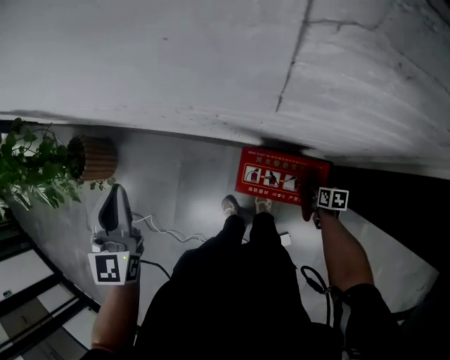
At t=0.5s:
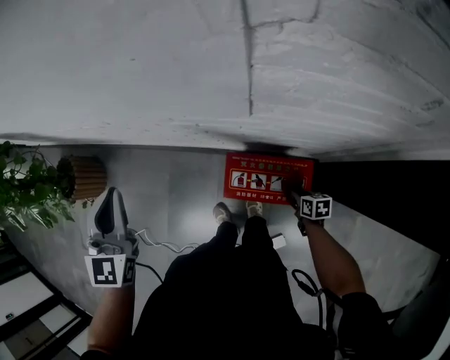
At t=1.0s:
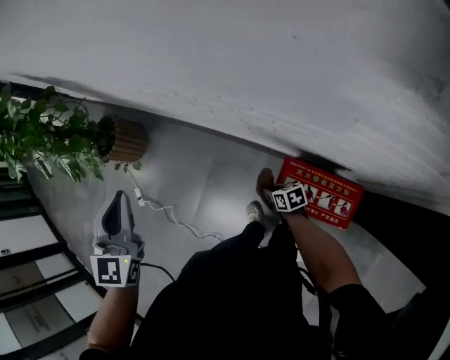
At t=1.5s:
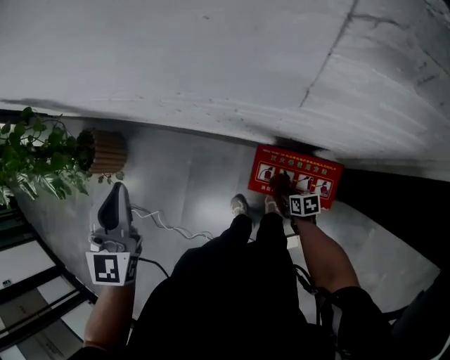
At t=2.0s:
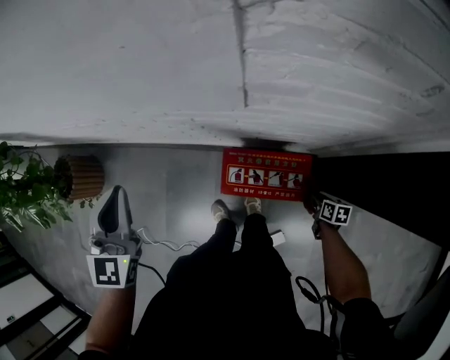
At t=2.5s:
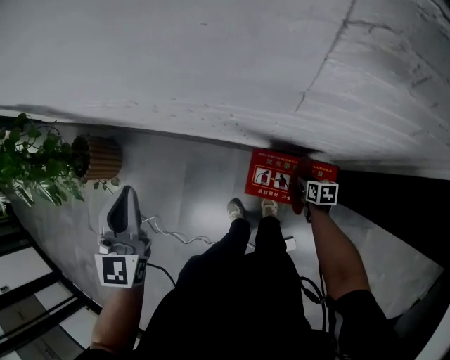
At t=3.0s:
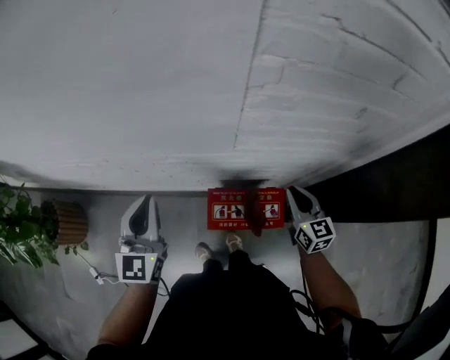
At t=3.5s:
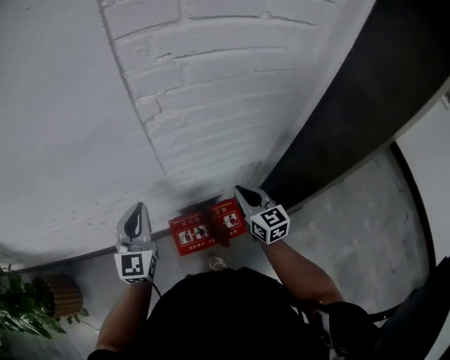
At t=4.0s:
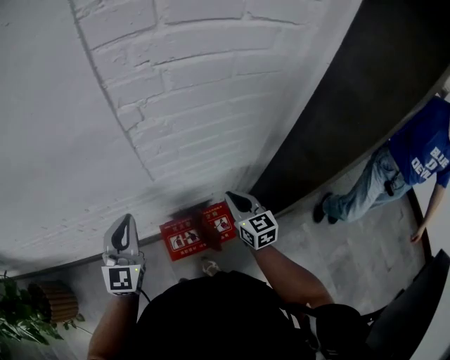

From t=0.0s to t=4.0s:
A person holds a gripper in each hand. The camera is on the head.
From t=2.0s to t=4.0s: The right gripper moves upward, some 35 cm, and tilts its fingers approximately 40 degrees upward; the left gripper changes place by roughly 15 cm, and rotates some 30 degrees.

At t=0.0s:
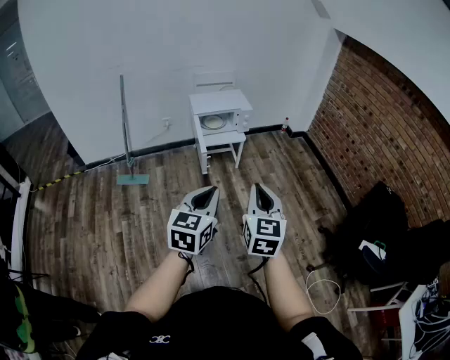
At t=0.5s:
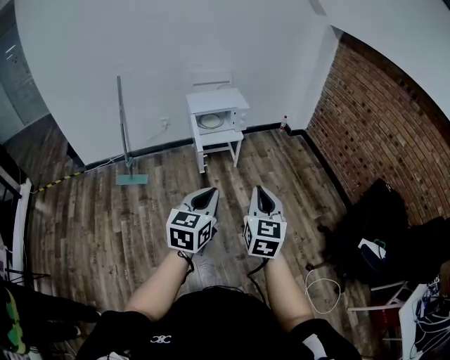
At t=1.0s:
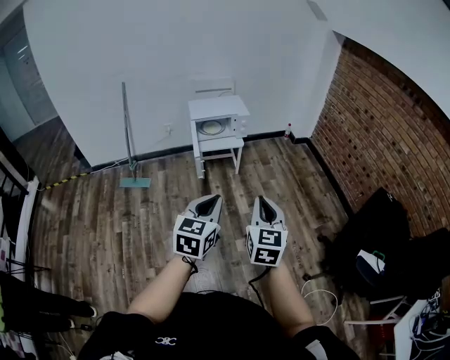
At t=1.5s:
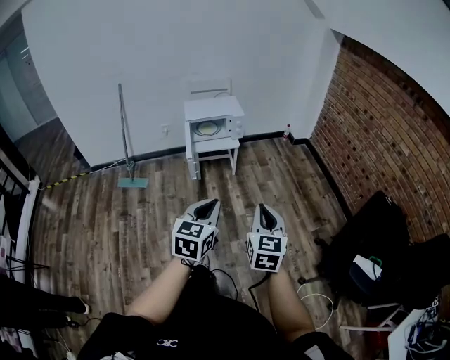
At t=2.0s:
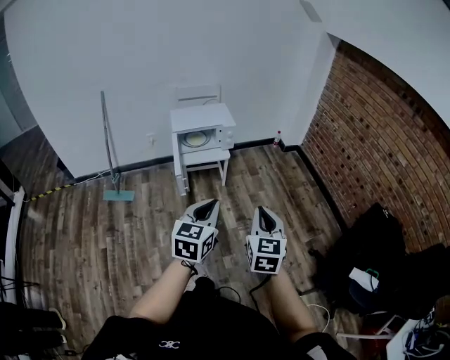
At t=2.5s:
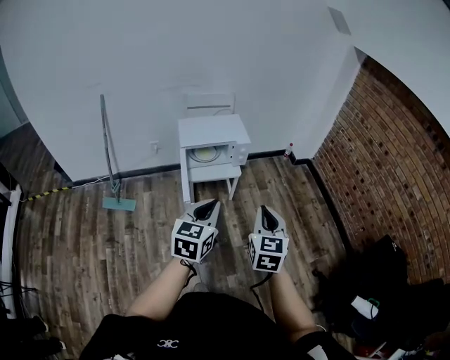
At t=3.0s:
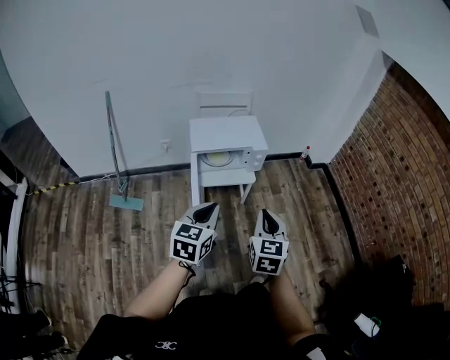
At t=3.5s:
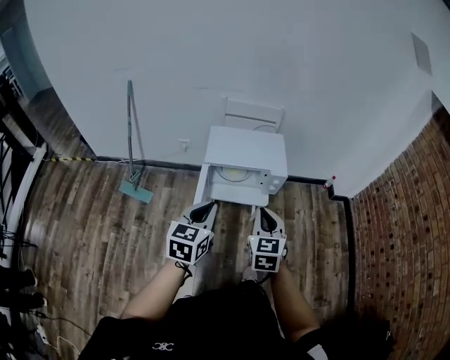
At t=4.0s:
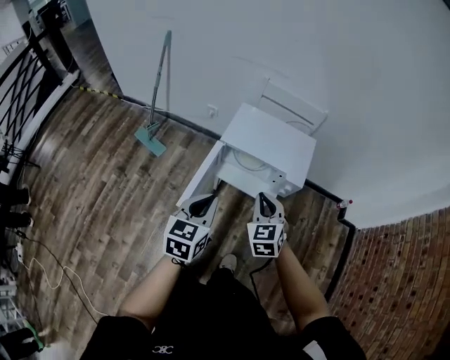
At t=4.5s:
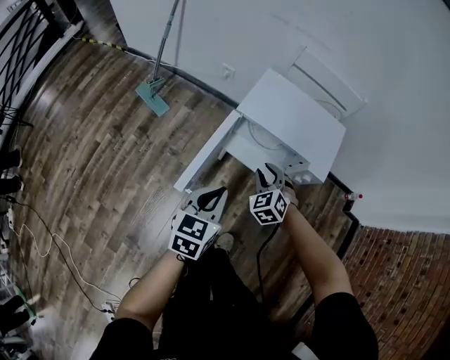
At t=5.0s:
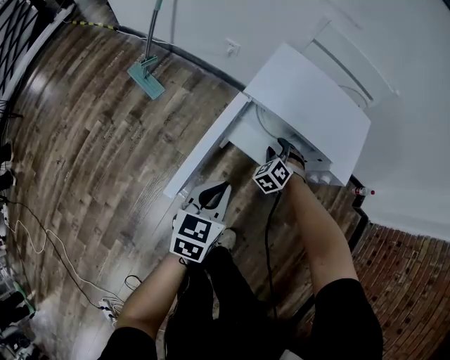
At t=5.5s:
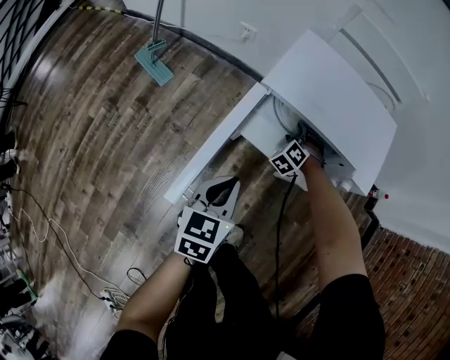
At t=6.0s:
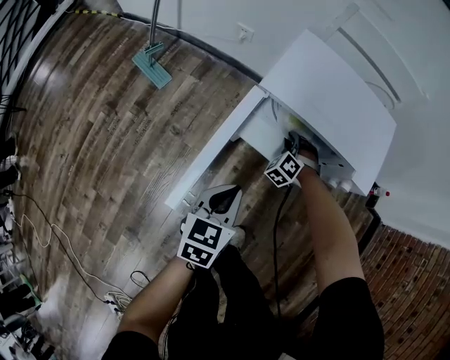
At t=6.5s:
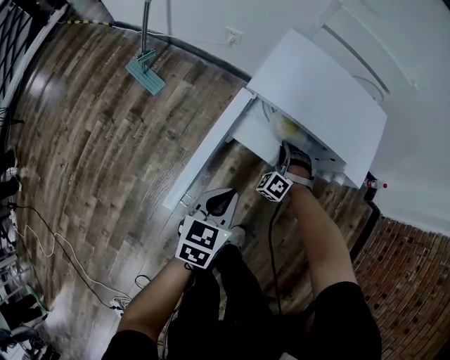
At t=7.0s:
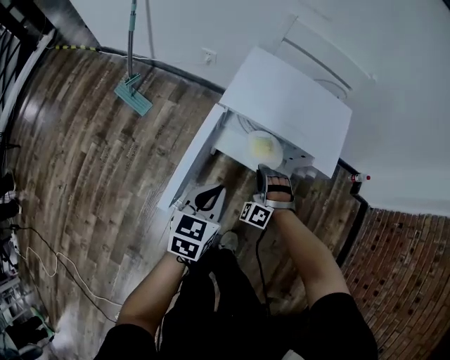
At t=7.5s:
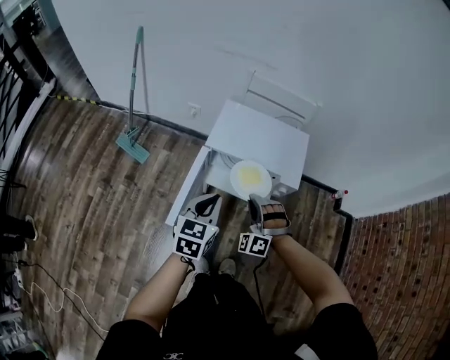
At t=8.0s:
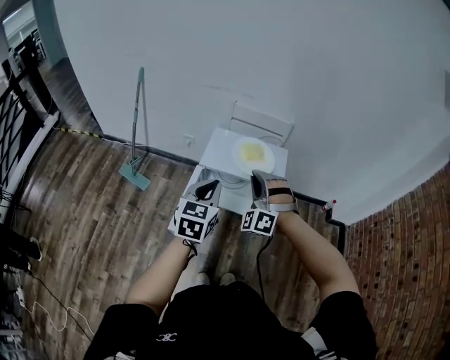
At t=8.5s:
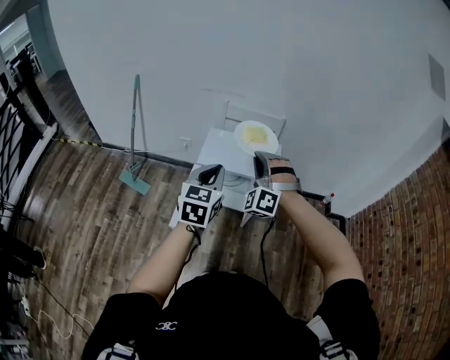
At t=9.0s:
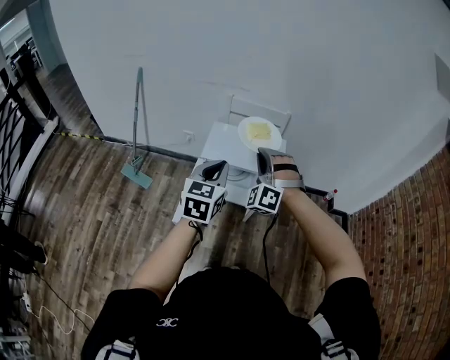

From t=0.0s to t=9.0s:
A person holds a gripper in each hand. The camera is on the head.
From t=0.0s to t=2.0s: The left gripper shifts some 20 cm forward and to the right. Meanwhile the right gripper is displaced to the right and forward by roughly 20 cm.
From t=2.0s to t=4.5s: The two grippers travel together, roughly 60 cm. The left gripper changes its angle by roughly 40 degrees. The right gripper changes its angle by about 80 degrees, and opens up.
From t=4.5s to t=7.0s: The left gripper moves downward and forward, approximately 10 cm, while the right gripper is displaced downward by some 10 cm, swivels about 40 degrees, and opens, then closes again.
From t=7.0s to t=9.0s: Both grippers move upward, roughly 40 cm. The left gripper swivels roughly 20 degrees; the right gripper turns by about 20 degrees.

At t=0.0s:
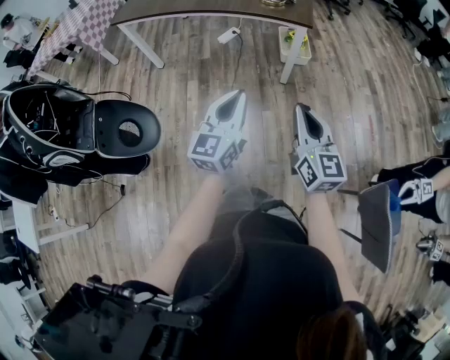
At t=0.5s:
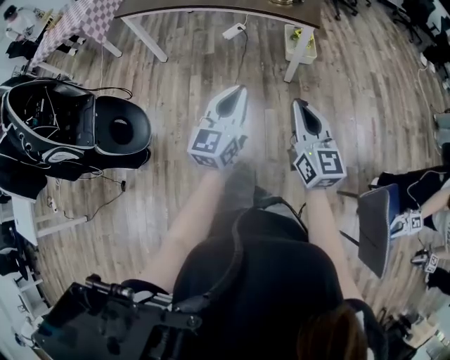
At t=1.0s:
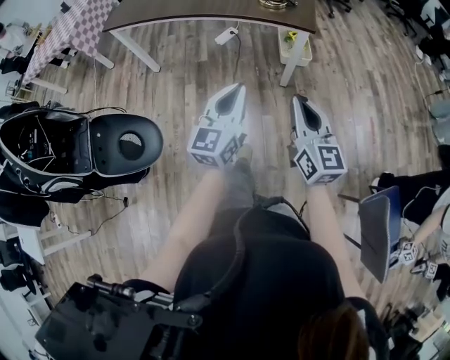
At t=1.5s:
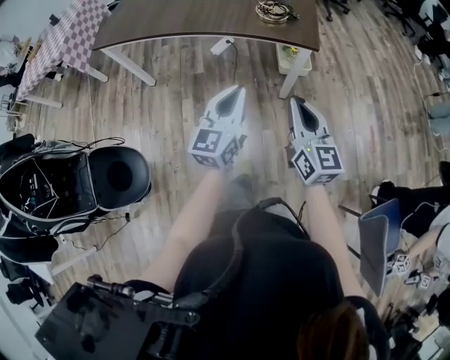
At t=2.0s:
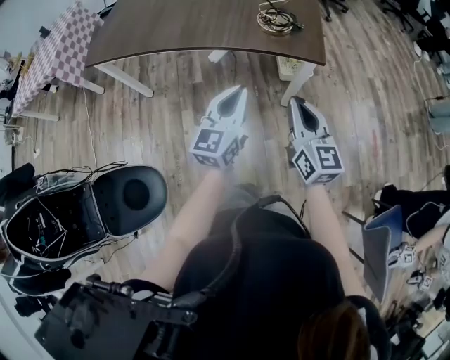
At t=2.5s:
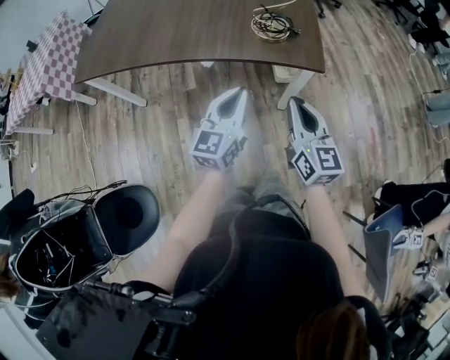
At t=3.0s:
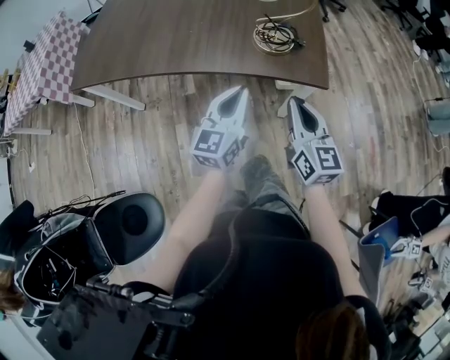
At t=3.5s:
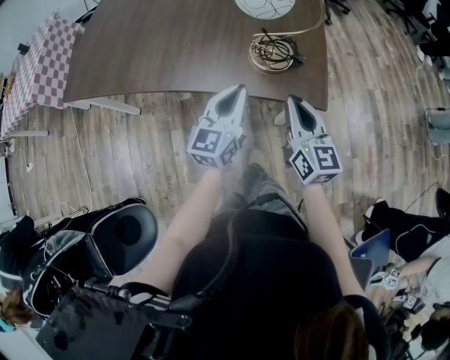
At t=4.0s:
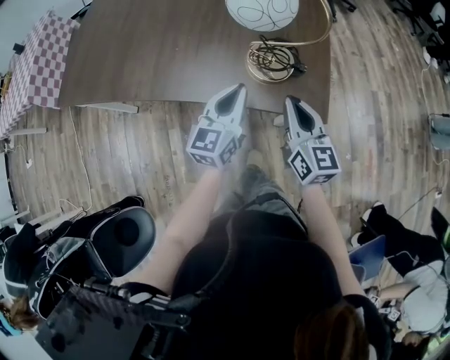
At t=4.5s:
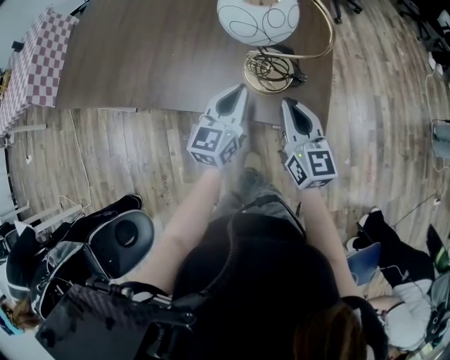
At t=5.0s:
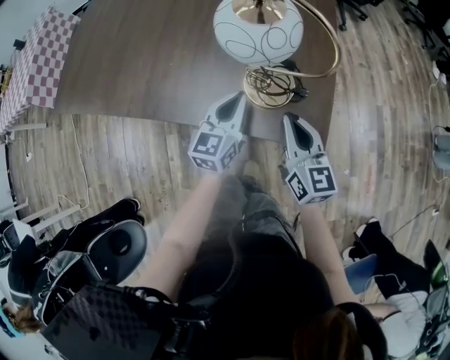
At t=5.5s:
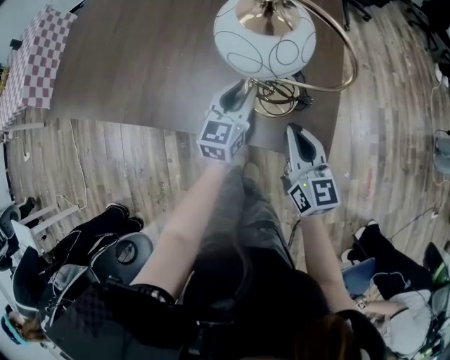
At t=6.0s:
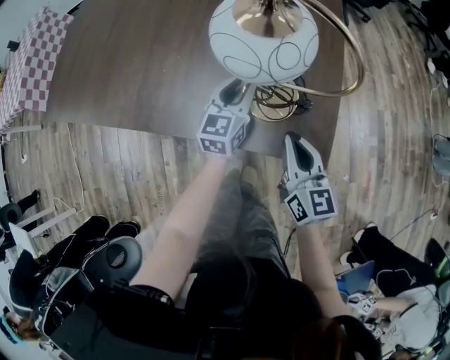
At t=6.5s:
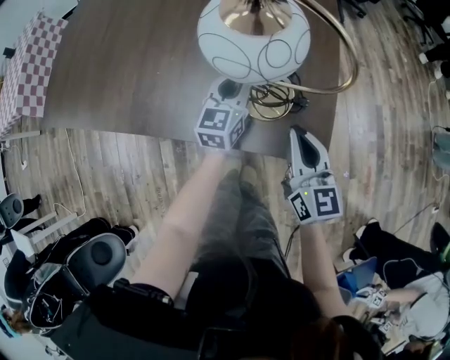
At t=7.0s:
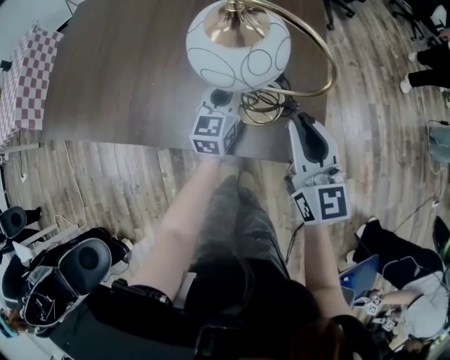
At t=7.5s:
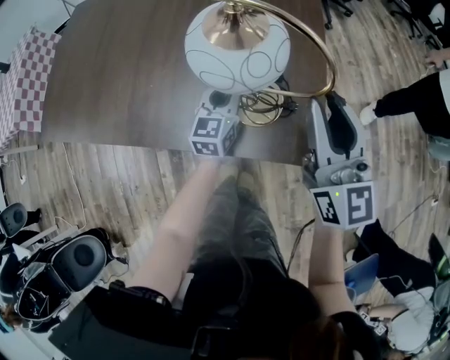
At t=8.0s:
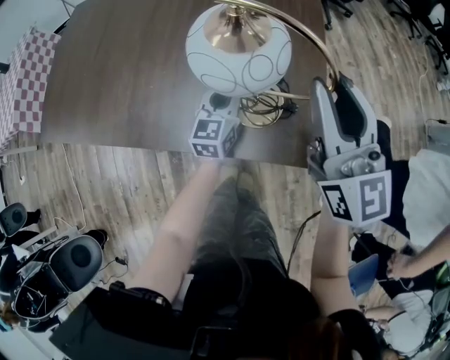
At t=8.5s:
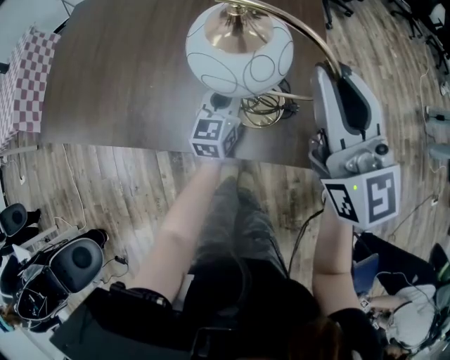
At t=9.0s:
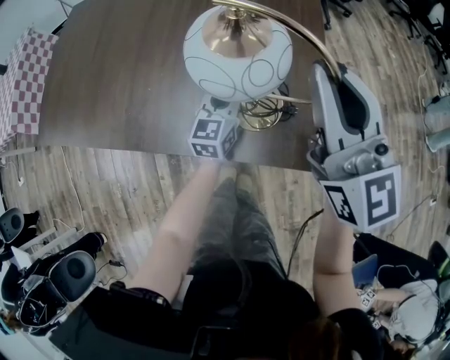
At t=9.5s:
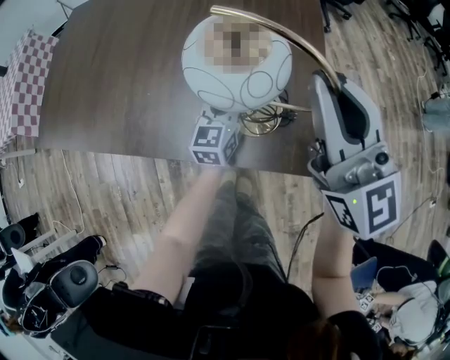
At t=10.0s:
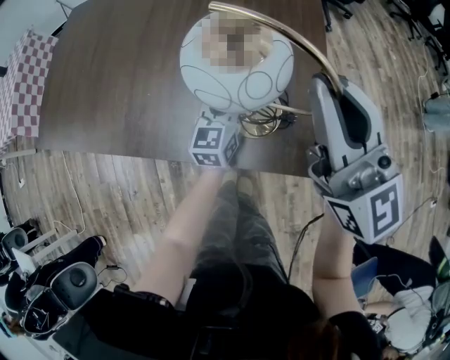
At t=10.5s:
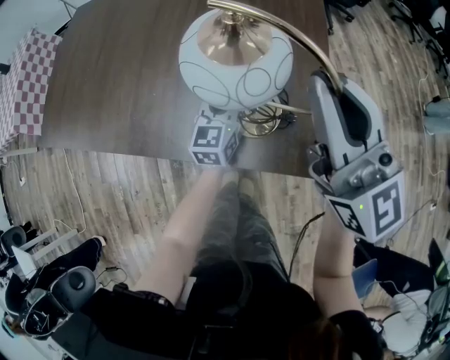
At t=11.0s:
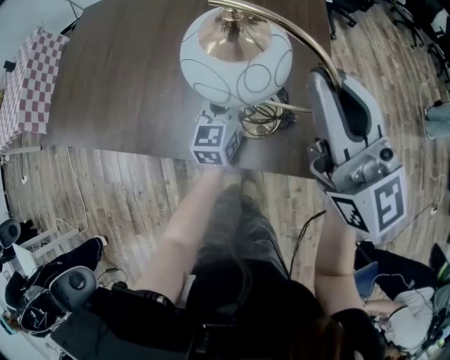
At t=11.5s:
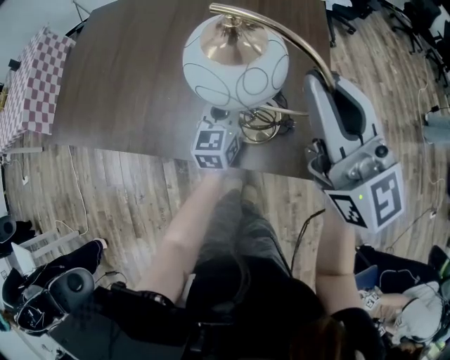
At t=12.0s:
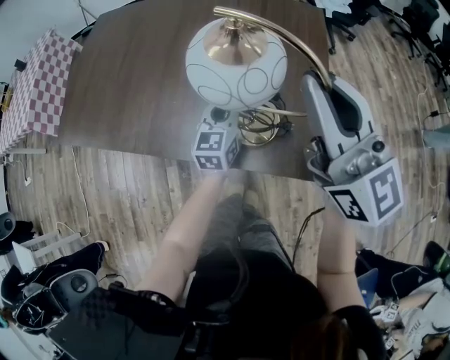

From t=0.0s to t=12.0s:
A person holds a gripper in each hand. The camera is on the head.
From t=0.0s to t=2.0s: The two grippers go approximately 25 cm forward.
From t=2.0s to t=4.0s: Both grippers travel together forward, some 25 cm.
From t=4.0s to t=6.0s: The left gripper heads forward and downward, covering some 15 cm, and opens its fingers, while the right gripper ends up approximately 5 cm from where it was.
From t=6.0s to t=8.0s: The right gripper moves upward, approximately 20 cm, rotates about 20 degrees, and opens up.
From t=8.0s to t=10.0s: The right gripper closes.
From t=10.0s to t=12.0s: The left gripper travels upward and to the left by approximately 5 cm. Meanwhile the right gripper goes approximately 5 cm upward.

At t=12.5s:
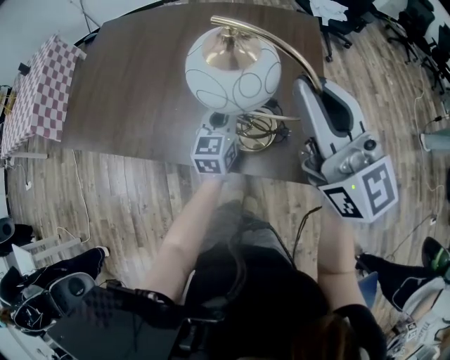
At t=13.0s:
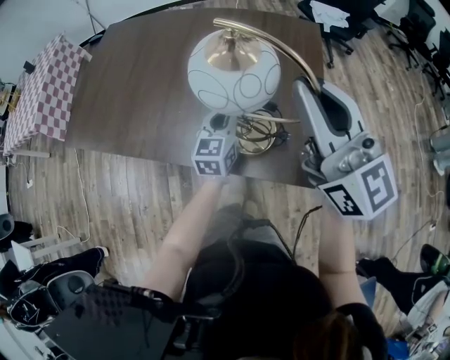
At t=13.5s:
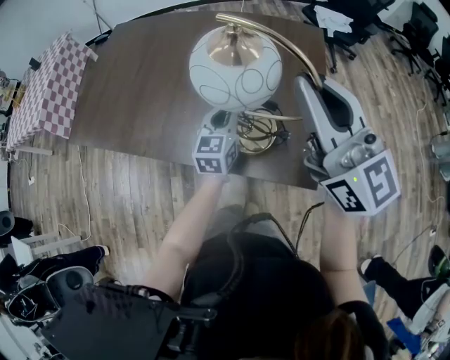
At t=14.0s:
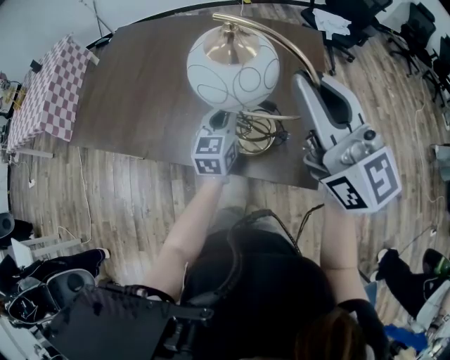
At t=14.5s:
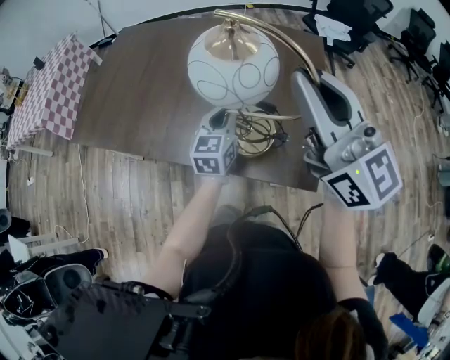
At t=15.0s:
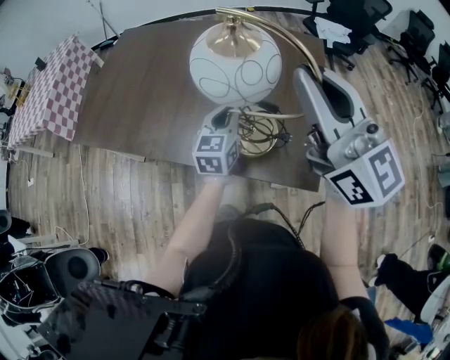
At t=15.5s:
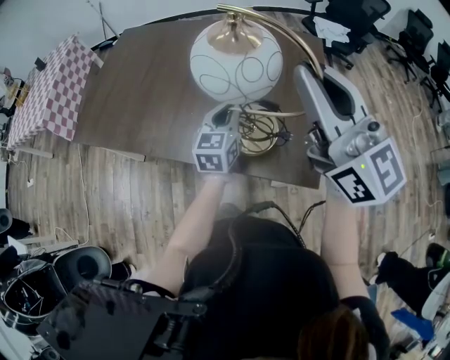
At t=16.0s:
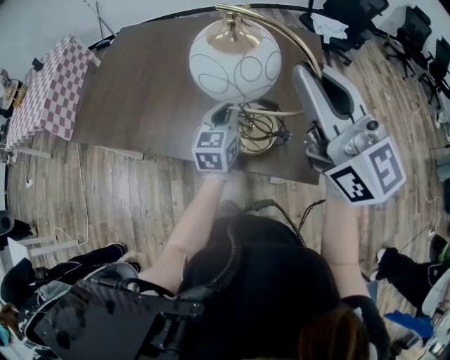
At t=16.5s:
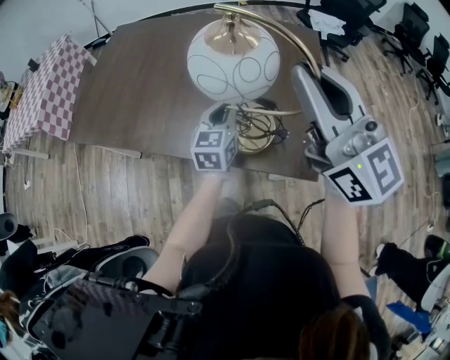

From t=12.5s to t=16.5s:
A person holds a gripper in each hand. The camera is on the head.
From t=12.5s to t=14.5s: The left gripper ends up roughly 5 cm from where it was.
From t=14.5s to t=16.5s: The grippers stay close to where they were, moving slightly.
